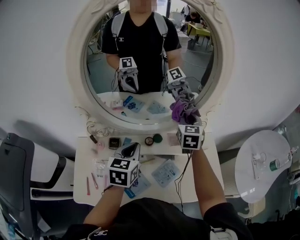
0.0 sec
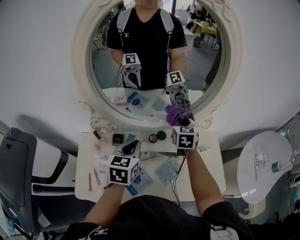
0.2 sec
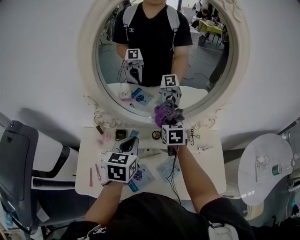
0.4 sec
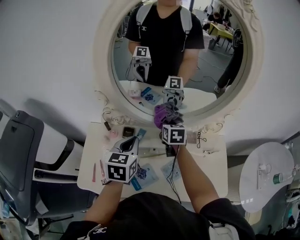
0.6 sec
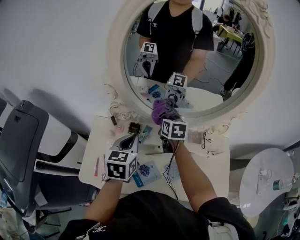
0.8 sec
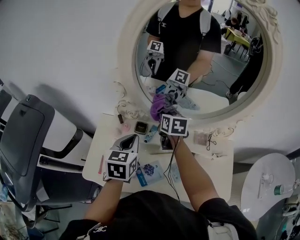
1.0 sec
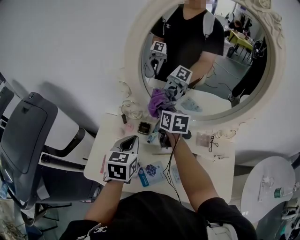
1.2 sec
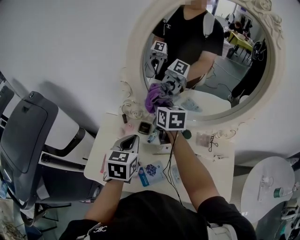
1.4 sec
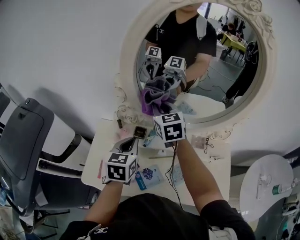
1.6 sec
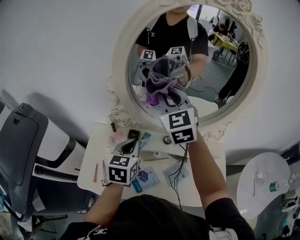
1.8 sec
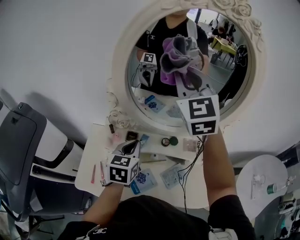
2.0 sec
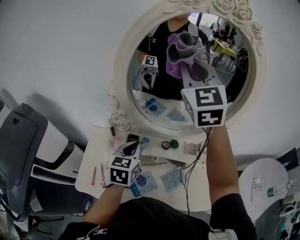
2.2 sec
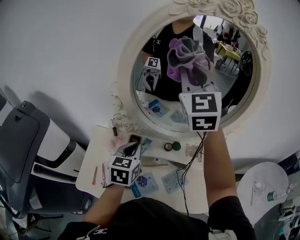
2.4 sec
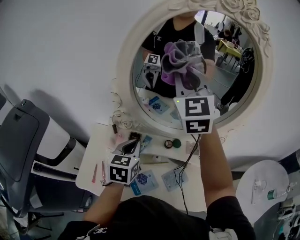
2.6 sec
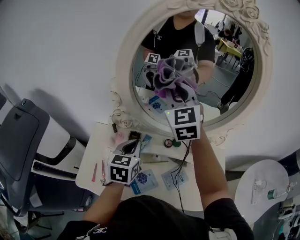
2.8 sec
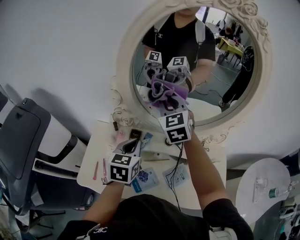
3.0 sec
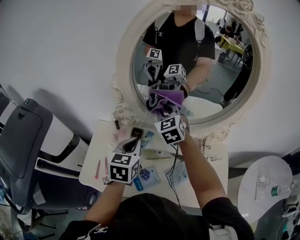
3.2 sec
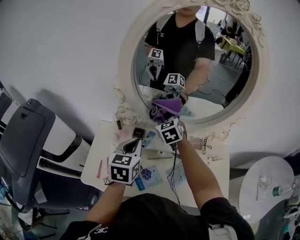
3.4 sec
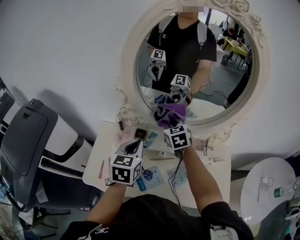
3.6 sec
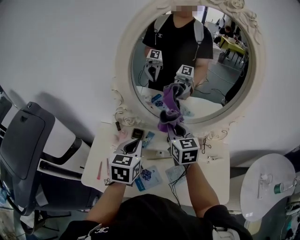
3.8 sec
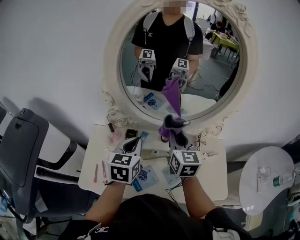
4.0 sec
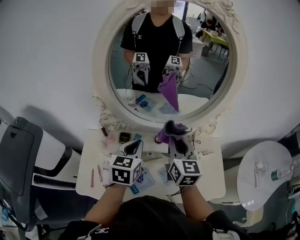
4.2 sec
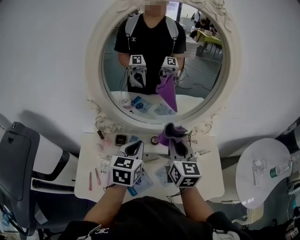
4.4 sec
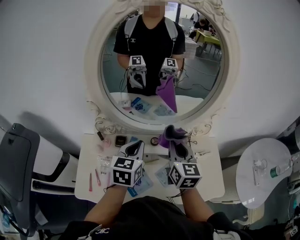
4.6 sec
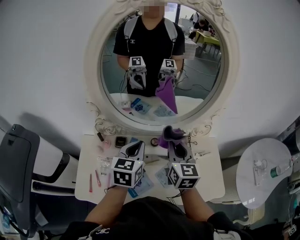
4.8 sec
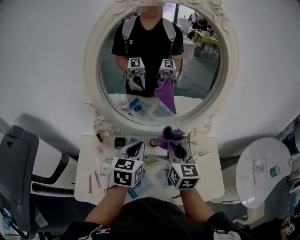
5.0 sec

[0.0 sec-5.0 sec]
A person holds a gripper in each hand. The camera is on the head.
0.0 sec to 1.6 sec: The left gripper ends up some 15 cm from where it was; the right gripper travels downward and back again, some 10 cm each way, and changes its angle by some 30 degrees.
1.6 sec to 3.4 sec: The right gripper reaches roughly 25 cm upward, then returns.
3.4 sec to 5.0 sec: The left gripper heads to the right, covering approximately 10 cm, while the right gripper goes some 20 cm to the right, backward and upward, and changes its angle by approximately 40 degrees.

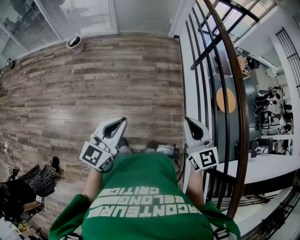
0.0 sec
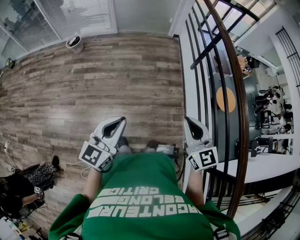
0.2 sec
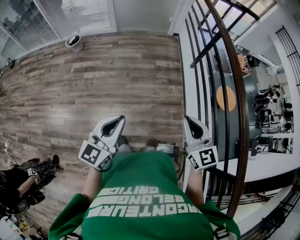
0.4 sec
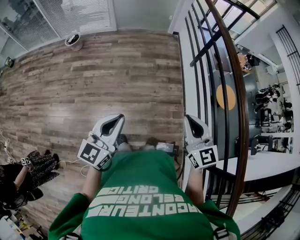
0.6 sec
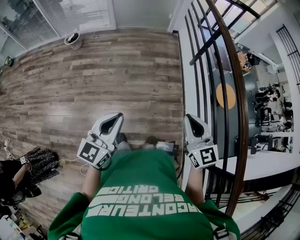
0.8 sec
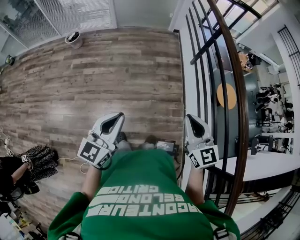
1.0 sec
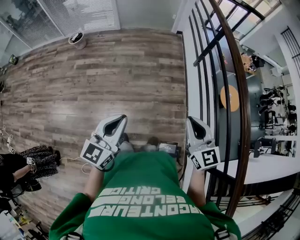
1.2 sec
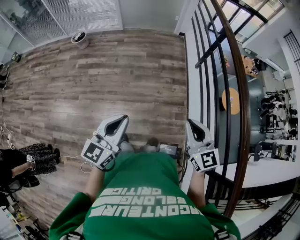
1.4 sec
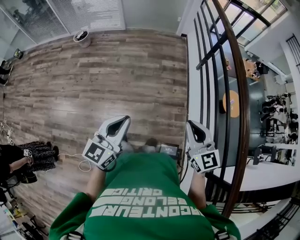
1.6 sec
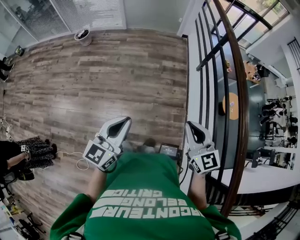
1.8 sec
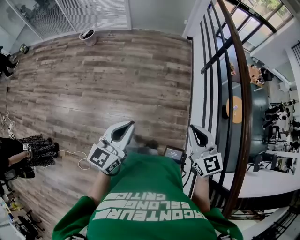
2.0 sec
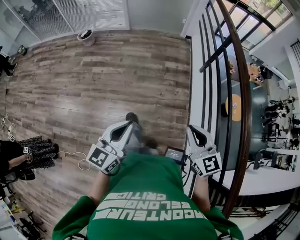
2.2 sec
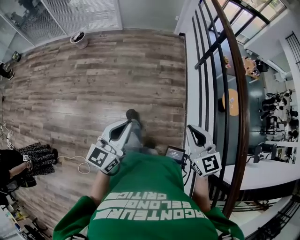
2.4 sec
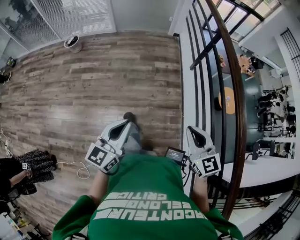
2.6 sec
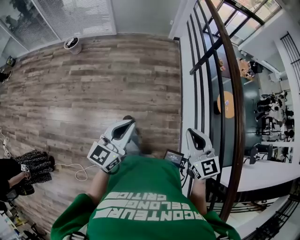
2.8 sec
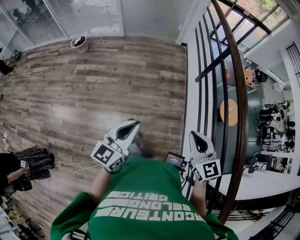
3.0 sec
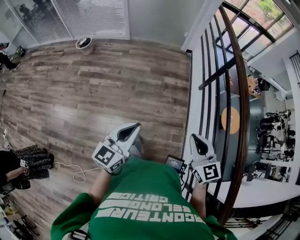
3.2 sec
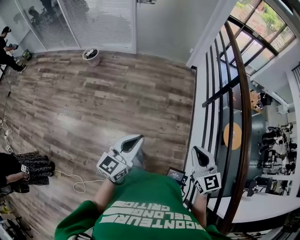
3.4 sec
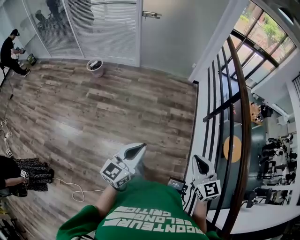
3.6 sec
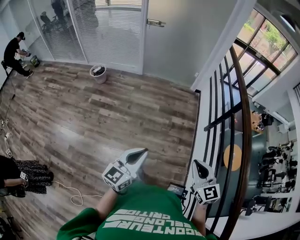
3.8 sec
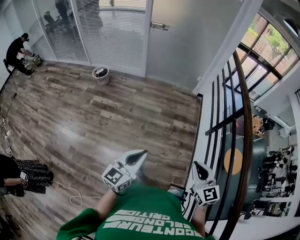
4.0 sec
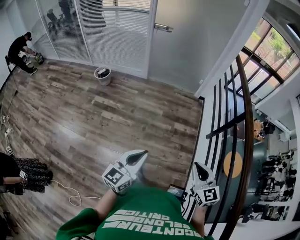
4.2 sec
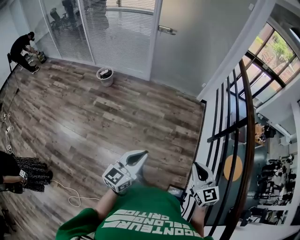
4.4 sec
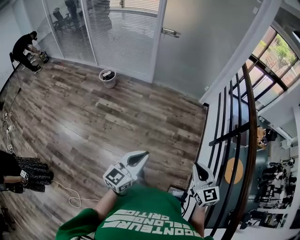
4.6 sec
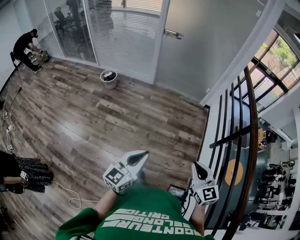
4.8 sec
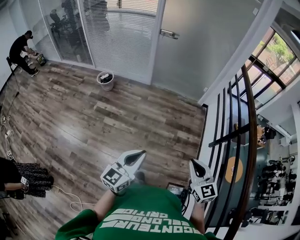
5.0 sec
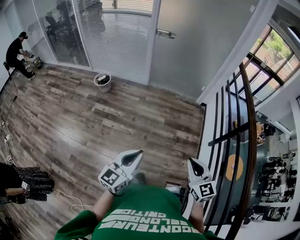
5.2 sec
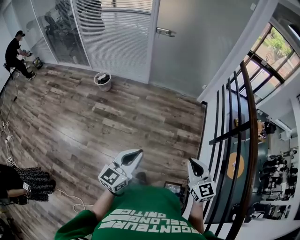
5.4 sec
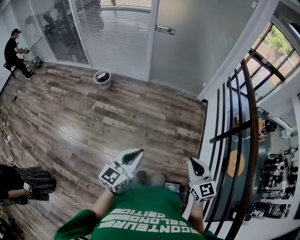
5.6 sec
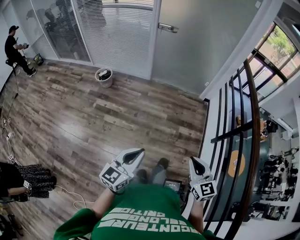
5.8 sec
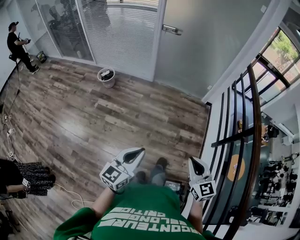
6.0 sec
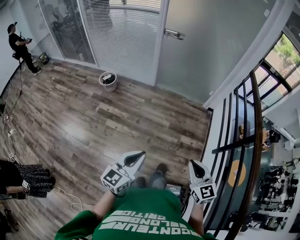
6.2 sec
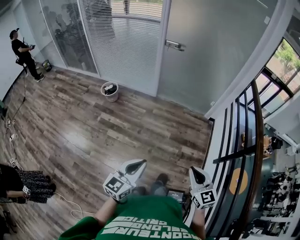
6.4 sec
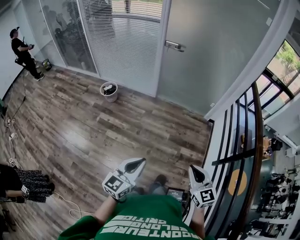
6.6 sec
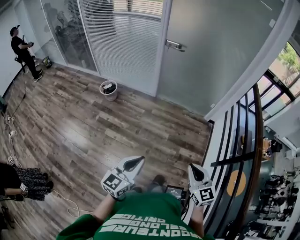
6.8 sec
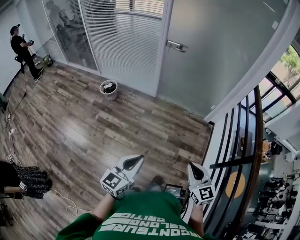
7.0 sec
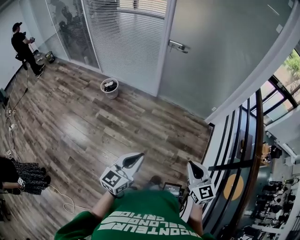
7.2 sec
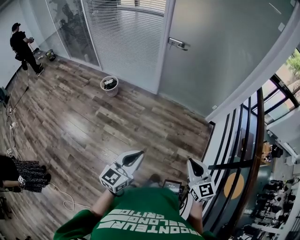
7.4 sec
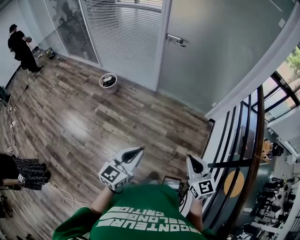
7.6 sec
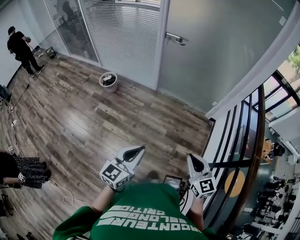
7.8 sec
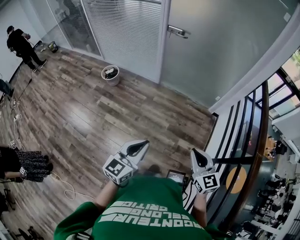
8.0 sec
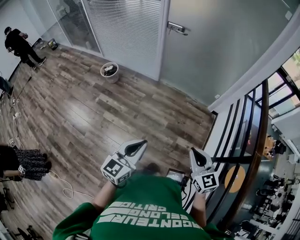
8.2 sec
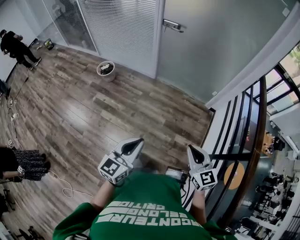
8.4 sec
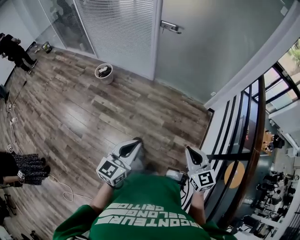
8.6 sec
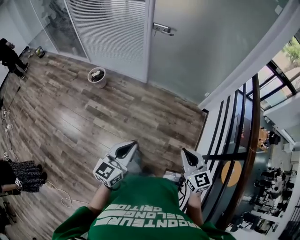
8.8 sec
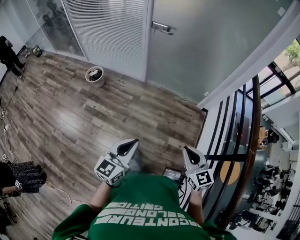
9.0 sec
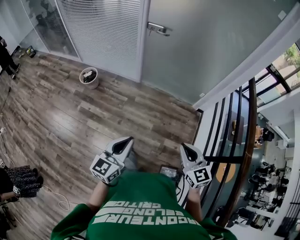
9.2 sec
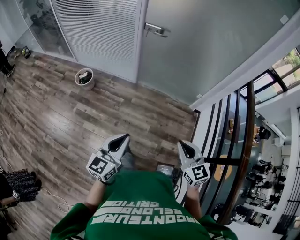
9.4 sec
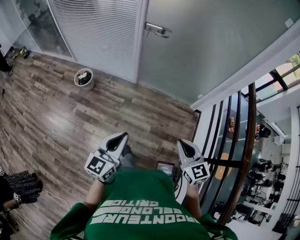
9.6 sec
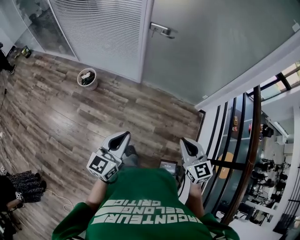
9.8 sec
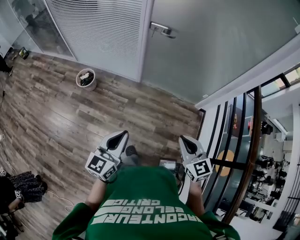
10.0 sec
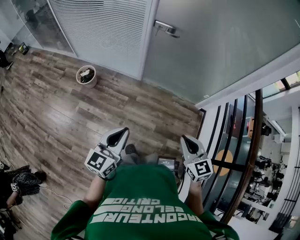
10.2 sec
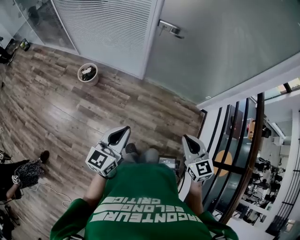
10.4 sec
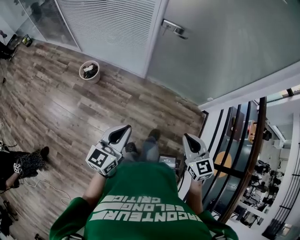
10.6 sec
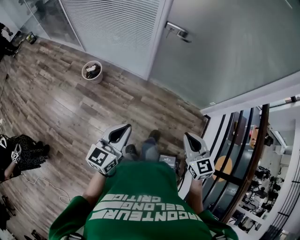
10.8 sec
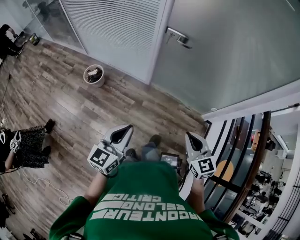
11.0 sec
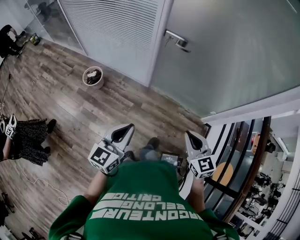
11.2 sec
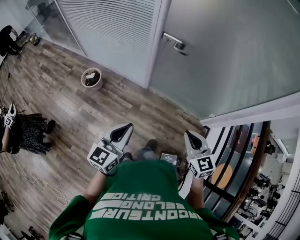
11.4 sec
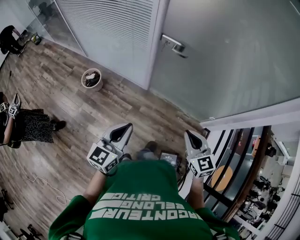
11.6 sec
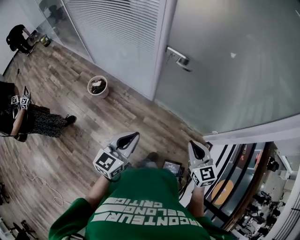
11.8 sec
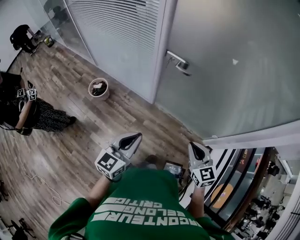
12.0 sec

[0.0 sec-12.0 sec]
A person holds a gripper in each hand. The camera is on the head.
0.0 sec to 1.6 sec: Both grippers travel together to the right, about 5 cm.
1.6 sec to 3.0 sec: The two grippers go roughly 10 cm forward.
3.0 sec to 4.4 sec: Both grippers move forward and to the left, approximately 20 cm.
4.4 sec to 6.0 sec: The grippers both shift forward and to the left by roughly 10 cm.
6.0 sec to 7.6 sec: The grippers both shift forward by about 20 cm.
7.6 sec to 9.0 sec: Both grippers move forward, some 5 cm.
9.0 sec to 10.4 sec: Both grippers move forward and to the left, about 20 cm.
10.4 sec to 12.0 sec: The right gripper moves forward, approximately 25 cm. The left gripper goes roughly 20 cm forward and to the right.

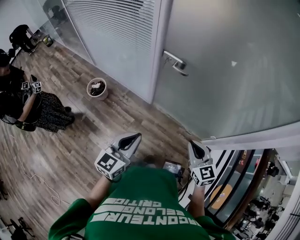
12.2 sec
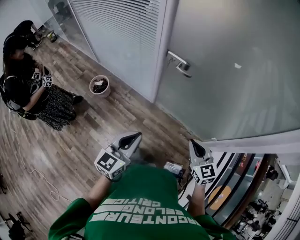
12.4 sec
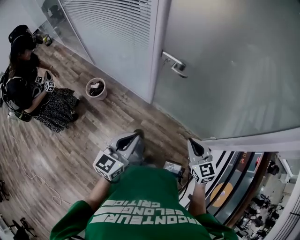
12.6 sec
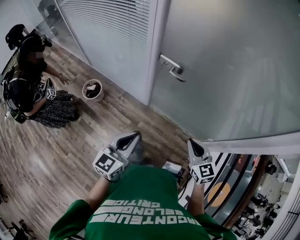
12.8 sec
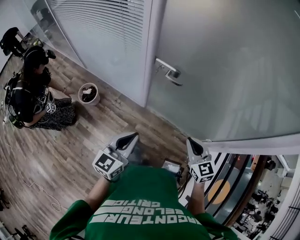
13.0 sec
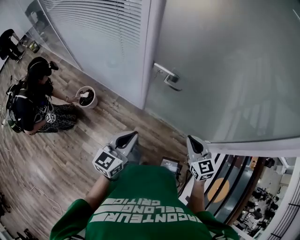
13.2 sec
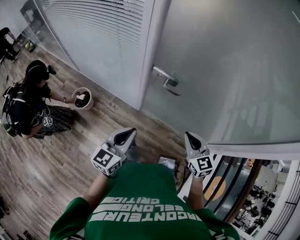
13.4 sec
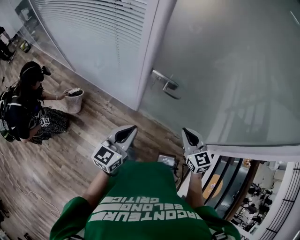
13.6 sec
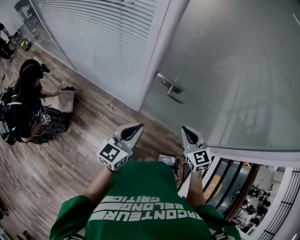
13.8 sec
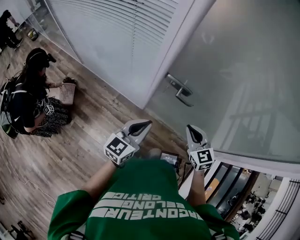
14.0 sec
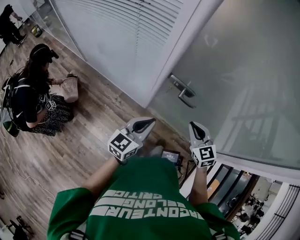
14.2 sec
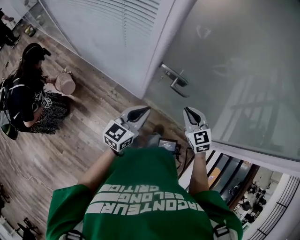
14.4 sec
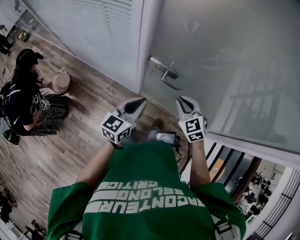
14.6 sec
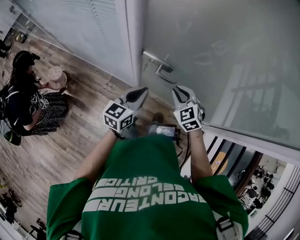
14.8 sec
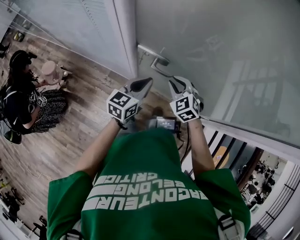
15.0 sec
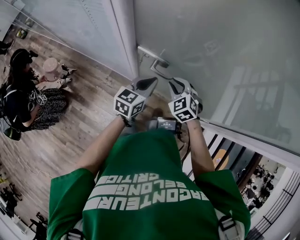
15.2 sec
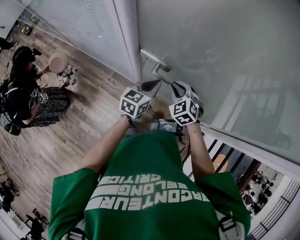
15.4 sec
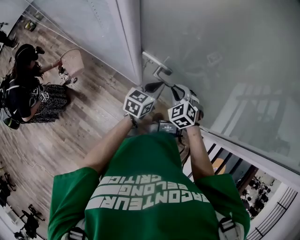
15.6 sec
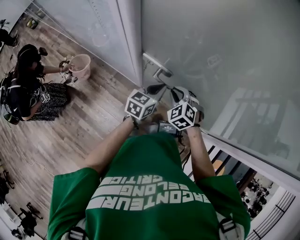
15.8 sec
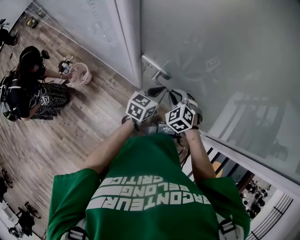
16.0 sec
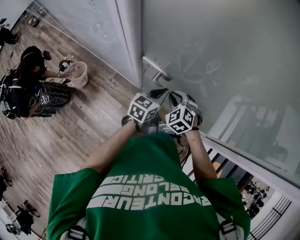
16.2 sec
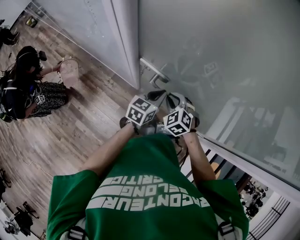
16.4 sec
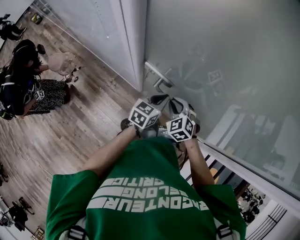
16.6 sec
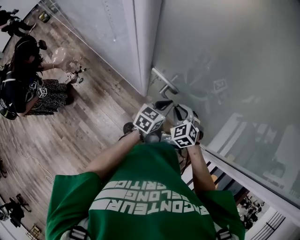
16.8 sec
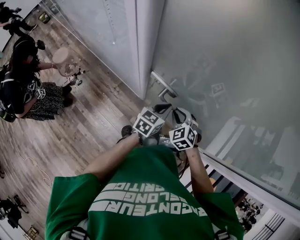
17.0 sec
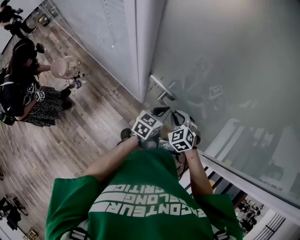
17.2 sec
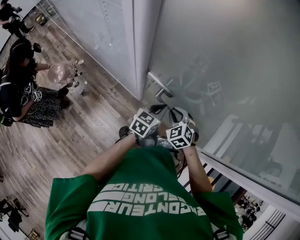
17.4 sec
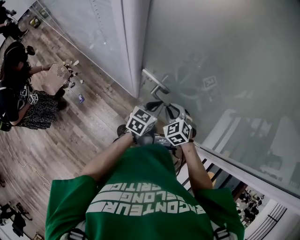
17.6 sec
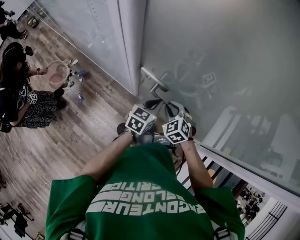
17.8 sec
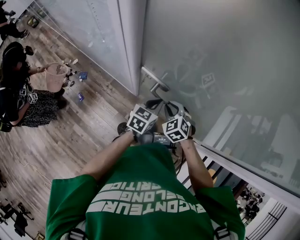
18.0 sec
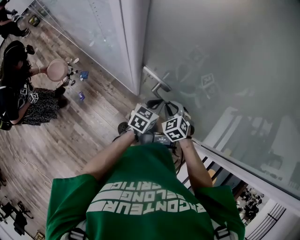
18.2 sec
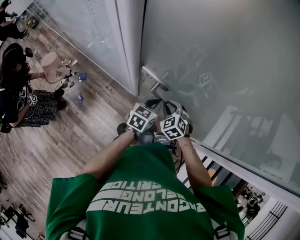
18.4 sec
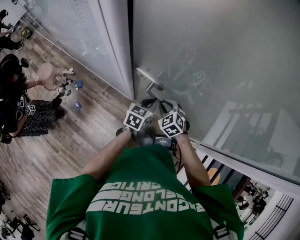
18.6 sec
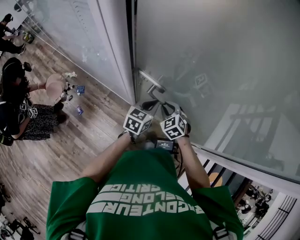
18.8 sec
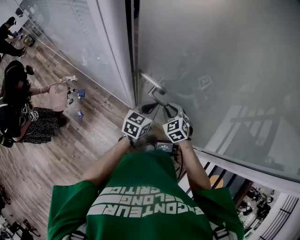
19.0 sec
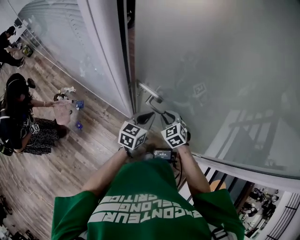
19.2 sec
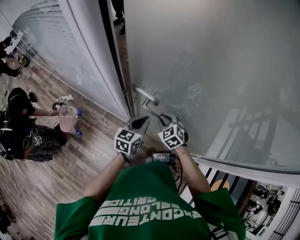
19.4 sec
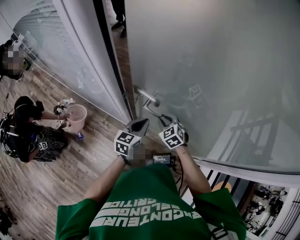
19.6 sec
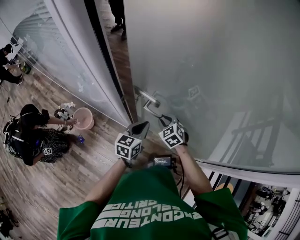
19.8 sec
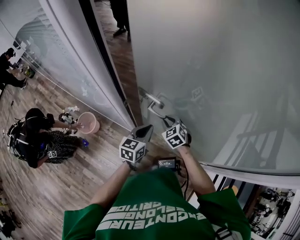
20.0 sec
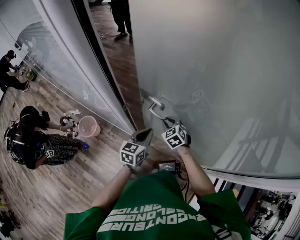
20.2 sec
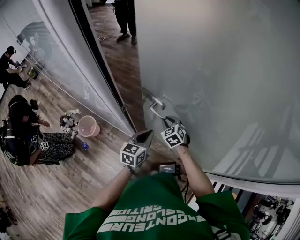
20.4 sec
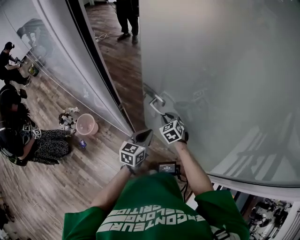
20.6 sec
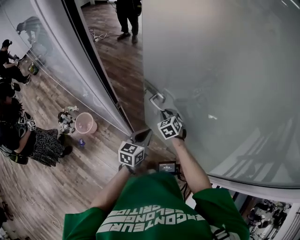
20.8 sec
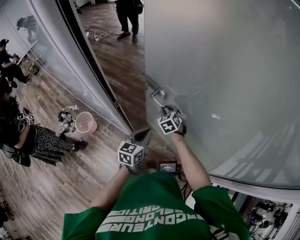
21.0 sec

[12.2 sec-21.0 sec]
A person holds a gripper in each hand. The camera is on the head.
12.2 sec to 13.6 sec: Both grippers move forward, approximately 20 cm.
13.6 sec to 15.2 sec: The right gripper shifts some 20 cm forward and downward, and changes its angle by some 30 degrees, while the left gripper is displaced forward, to the right and downward by approximately 25 cm.
15.2 sec to 16.6 sec: The left gripper changes place by approximately 5 cm.
16.6 sec to 18.0 sec: The grippers make only small movements.
18.0 sec to 19.6 sec: The left gripper moves some 5 cm; the right gripper shifts some 5 cm forward.
19.6 sec to 21.0 sec: The left gripper shifts approximately 5 cm to the right, while the right gripper is displaced forward by roughly 10 cm.
